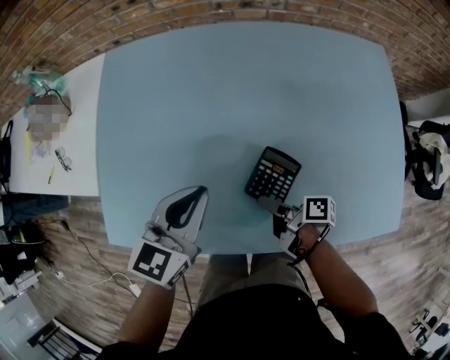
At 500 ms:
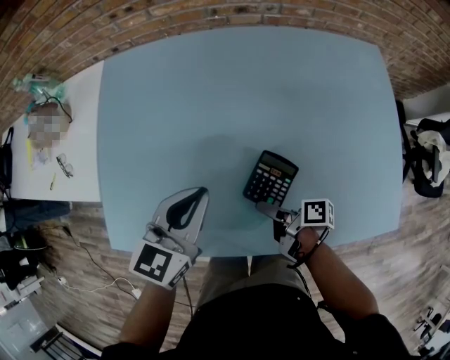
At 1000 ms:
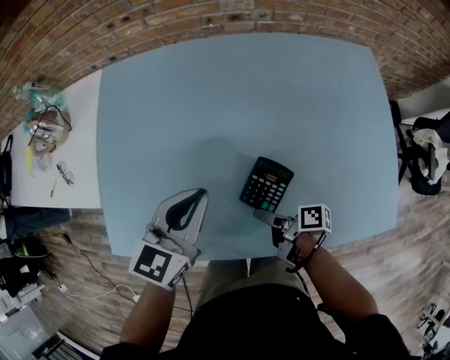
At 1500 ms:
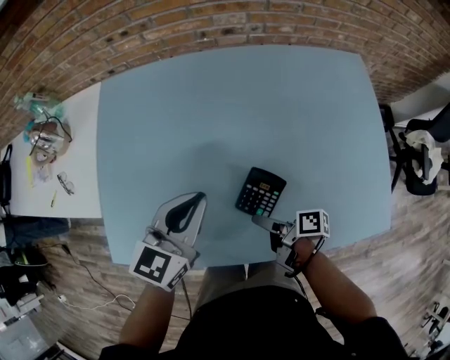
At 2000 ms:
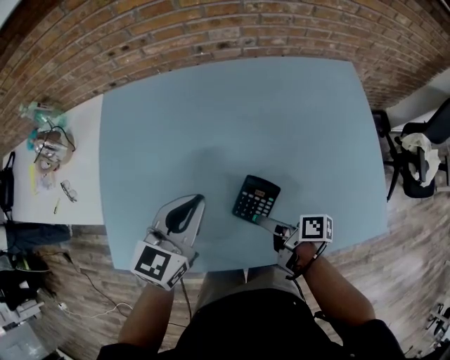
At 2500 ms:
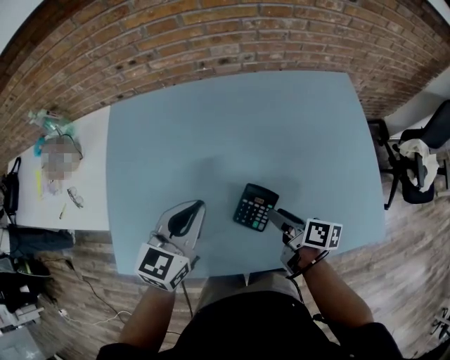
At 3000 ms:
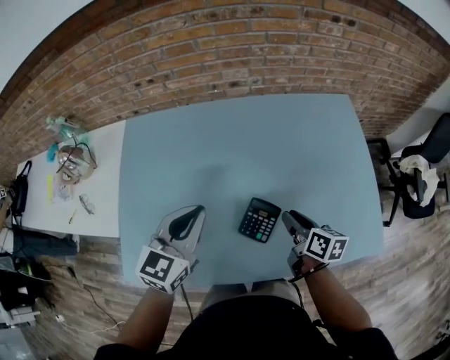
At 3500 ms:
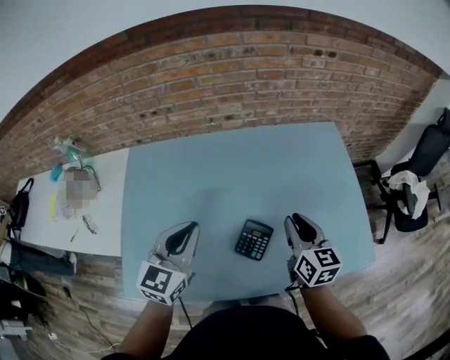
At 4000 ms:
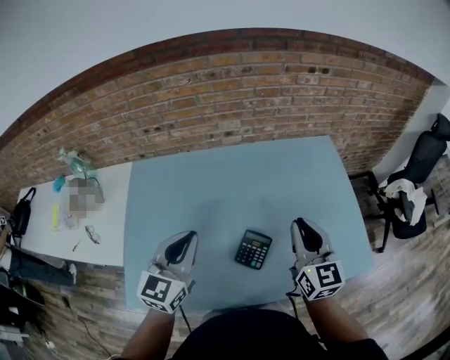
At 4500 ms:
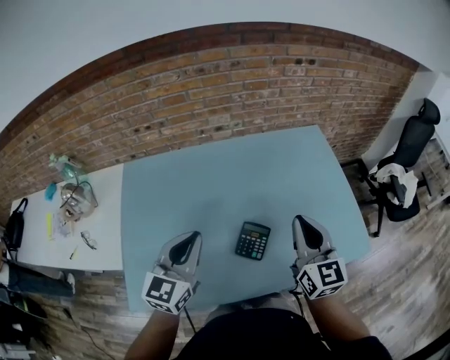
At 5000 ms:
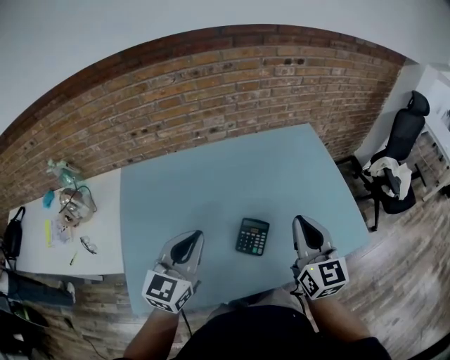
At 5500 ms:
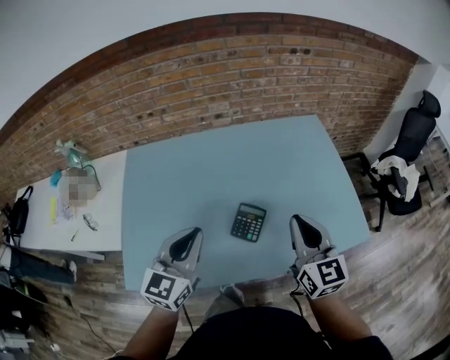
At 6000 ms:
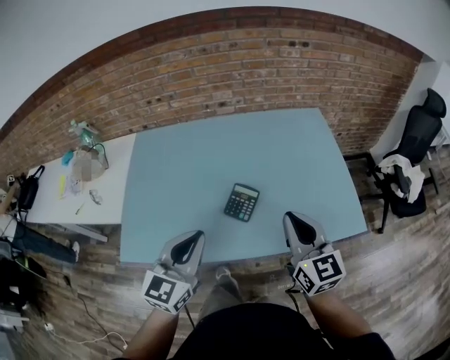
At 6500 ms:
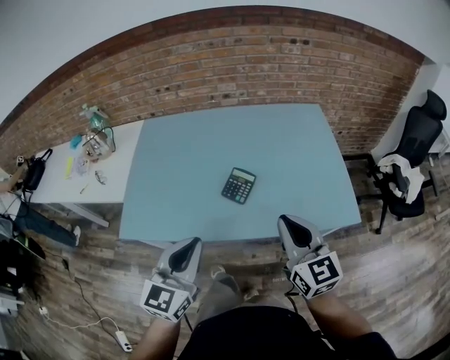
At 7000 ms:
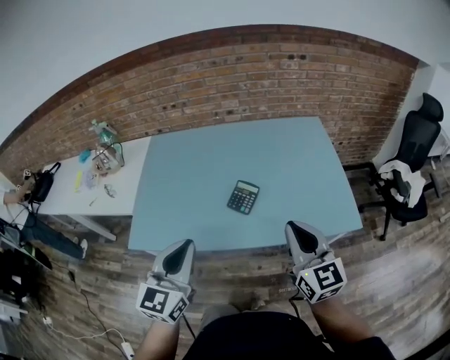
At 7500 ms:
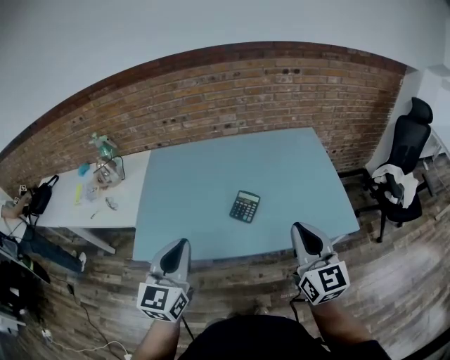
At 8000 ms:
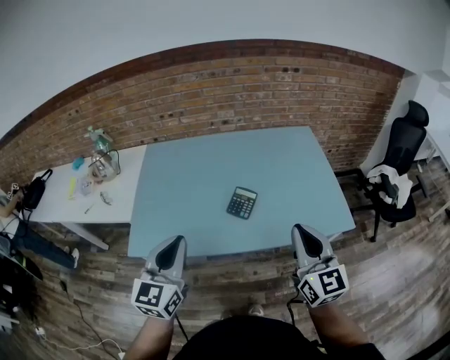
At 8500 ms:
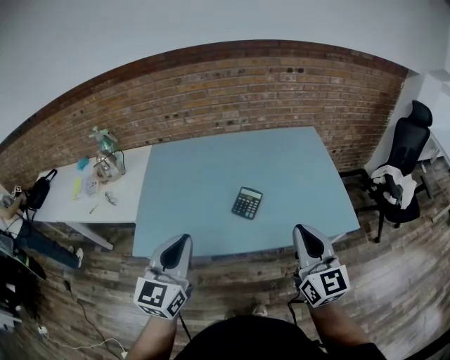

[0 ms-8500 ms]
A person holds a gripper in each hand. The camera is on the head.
0 ms to 2000 ms: The right gripper goes some 5 cm upward. The left gripper moves approximately 5 cm.
2000 ms to 4000 ms: The left gripper shifts roughly 10 cm upward. Meanwhile the right gripper moves upward, some 25 cm, rotates around the line of its fingers by approximately 70 degrees, counterclockwise from behind, and closes.
4000 ms to 6500 ms: The right gripper shifts some 25 cm backward, while the left gripper travels backward and to the right by approximately 30 cm.
6500 ms to 8500 ms: The left gripper is displaced to the left and upward by some 10 cm. The right gripper goes some 5 cm upward.

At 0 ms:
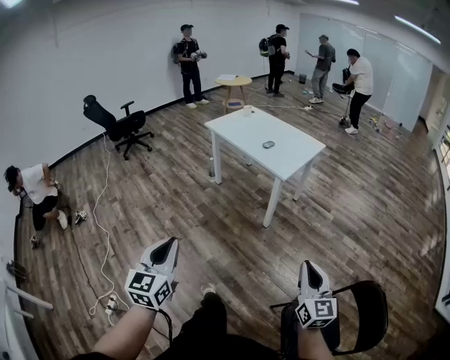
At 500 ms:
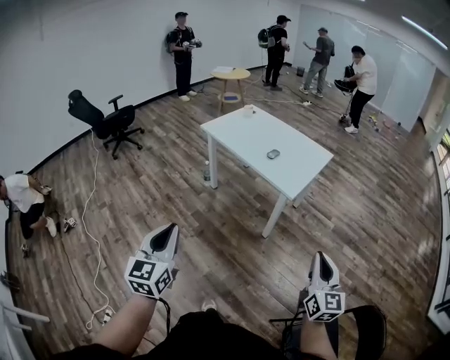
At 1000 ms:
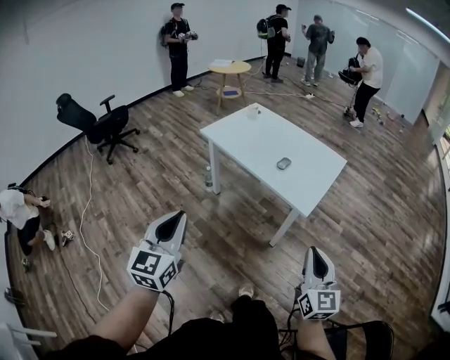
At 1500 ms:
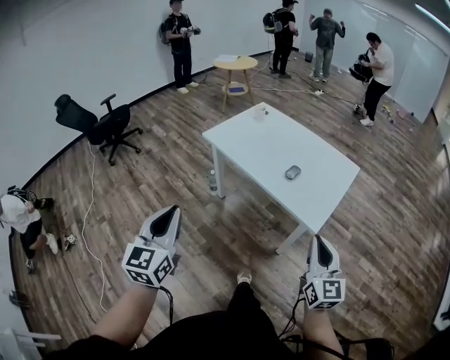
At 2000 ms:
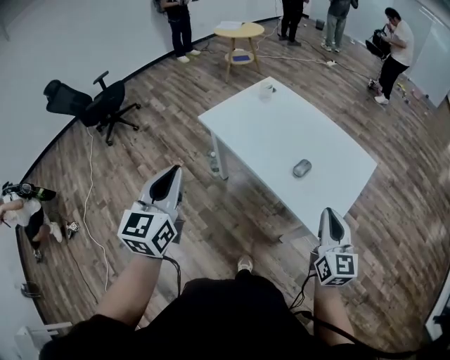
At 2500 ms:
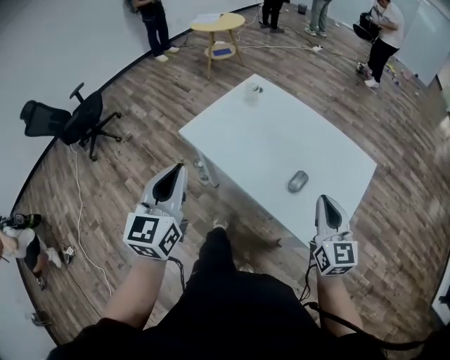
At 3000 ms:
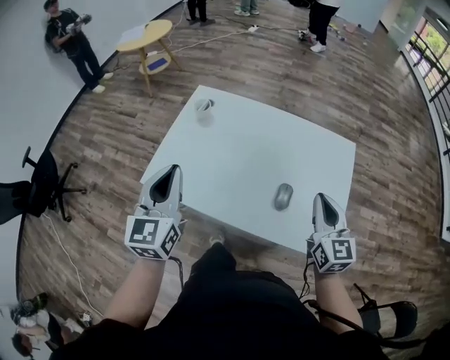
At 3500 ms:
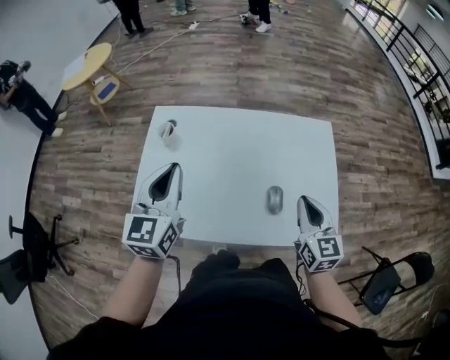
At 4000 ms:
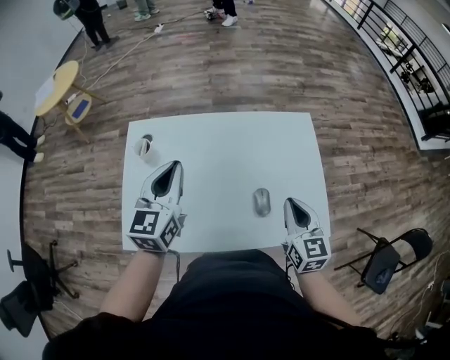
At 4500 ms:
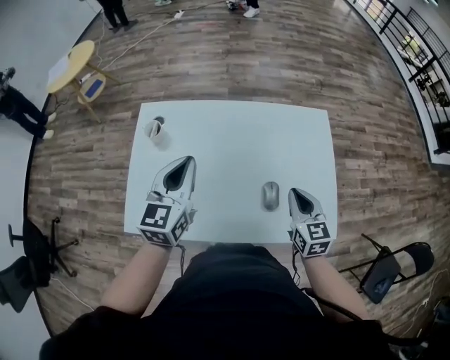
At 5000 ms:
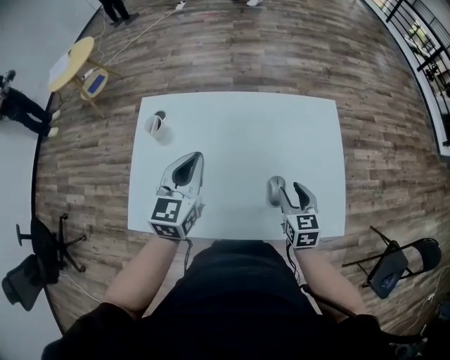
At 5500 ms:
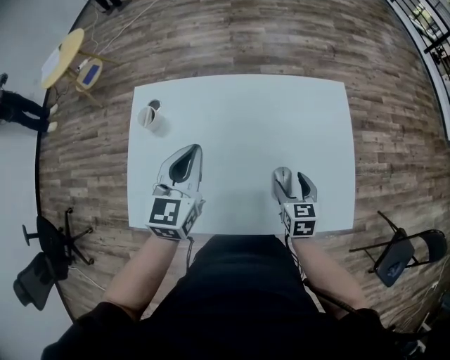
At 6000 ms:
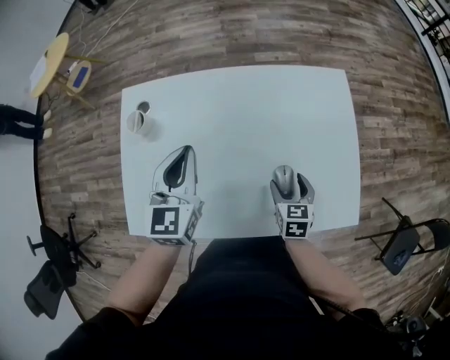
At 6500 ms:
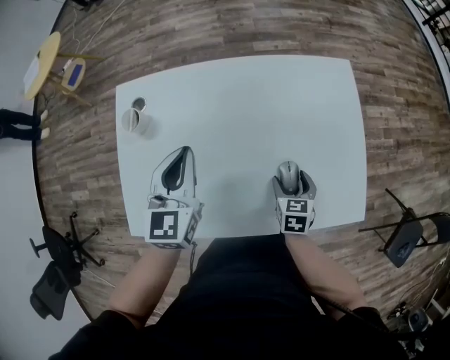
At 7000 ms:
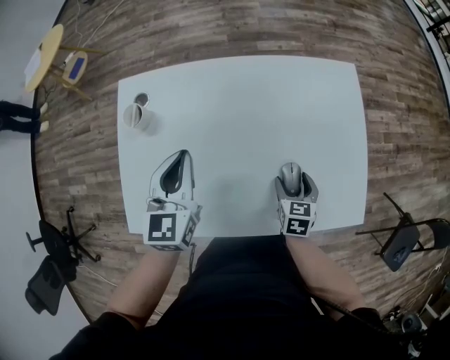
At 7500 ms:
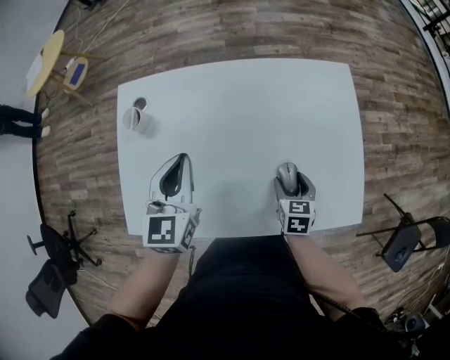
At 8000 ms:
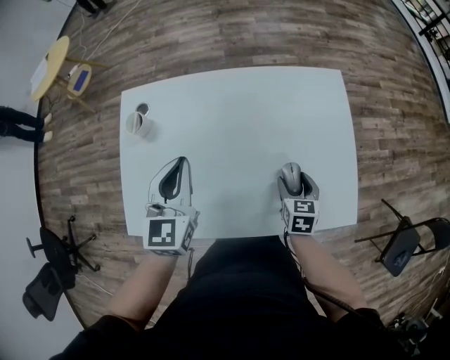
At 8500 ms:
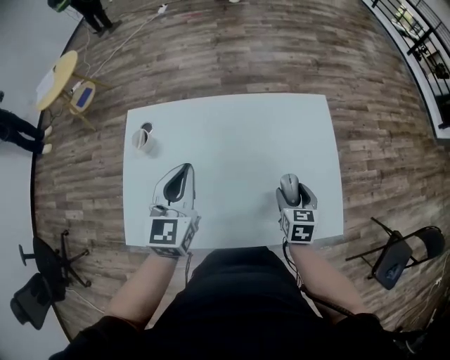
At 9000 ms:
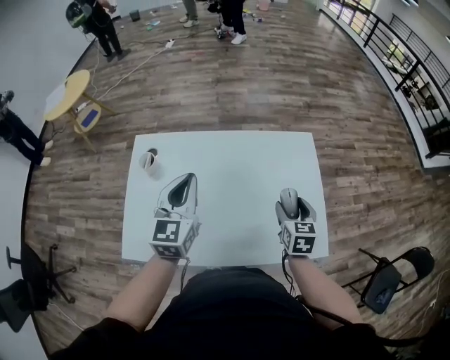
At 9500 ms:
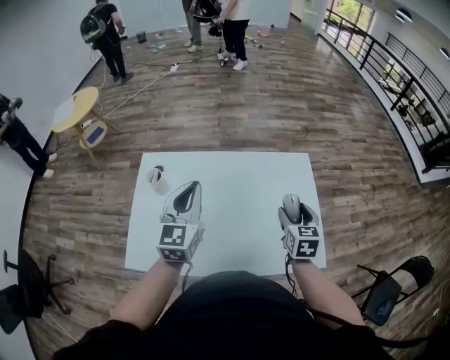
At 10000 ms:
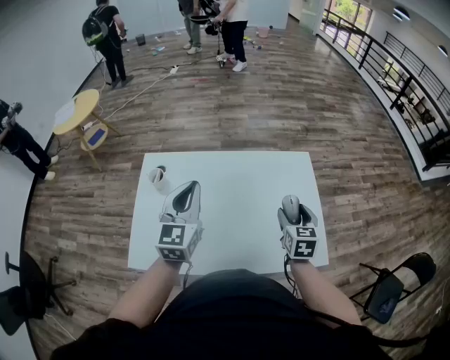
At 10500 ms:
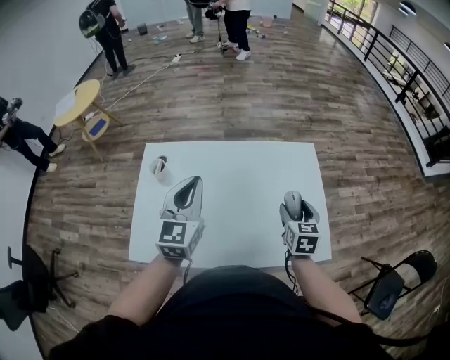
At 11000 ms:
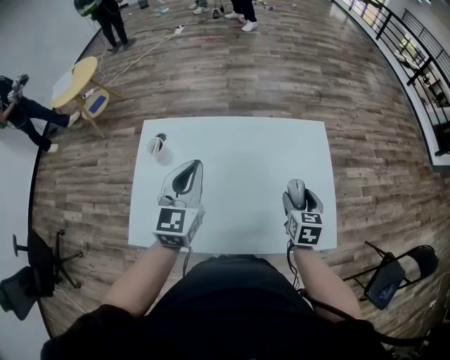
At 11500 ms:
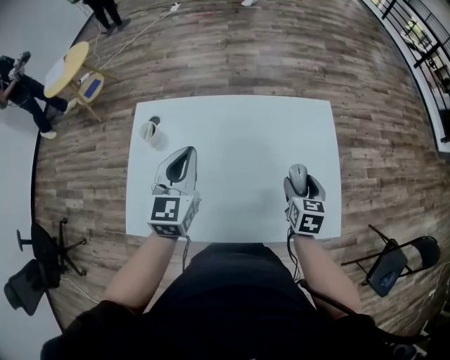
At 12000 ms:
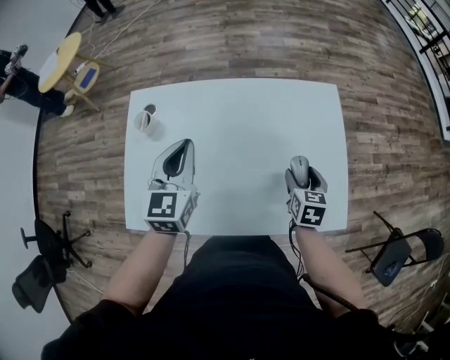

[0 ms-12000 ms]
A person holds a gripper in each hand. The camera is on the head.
0 ms to 2000 ms: The pair of grippers is taken forward, some 60 cm.
2000 ms to 4000 ms: The right gripper moves some 15 cm, and turns by about 40 degrees. The left gripper shifts by roughly 40 cm, and changes its angle by some 50 degrees.
4000 ms to 6000 ms: The left gripper heads downward, covering about 5 cm, while the right gripper travels downward by some 20 cm, changes its angle by about 30 degrees, and opens its fingers.
6000 ms to 8000 ms: The grippers move only a little.
8000 ms to 10000 ms: The left gripper goes roughly 10 cm upward; the right gripper travels upward by about 15 cm.
10000 ms to 12000 ms: Both grippers move downward, about 10 cm.

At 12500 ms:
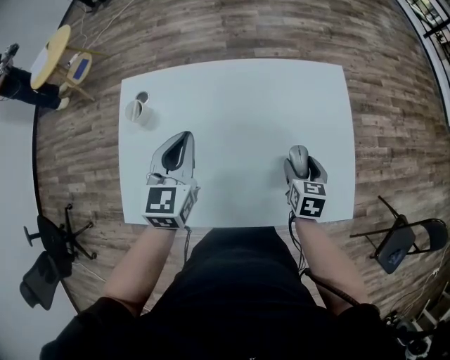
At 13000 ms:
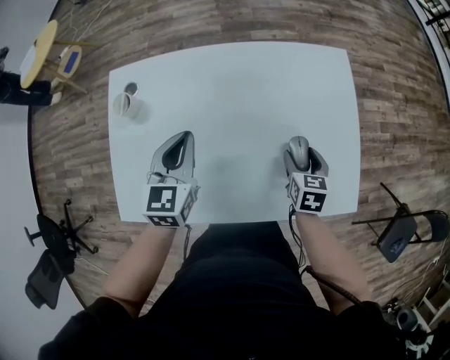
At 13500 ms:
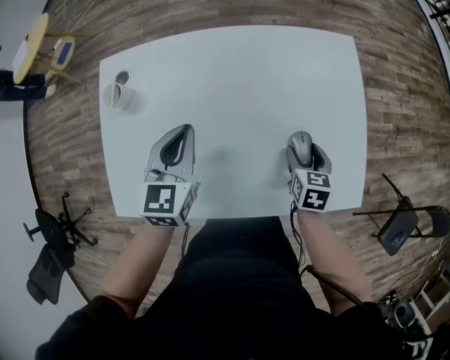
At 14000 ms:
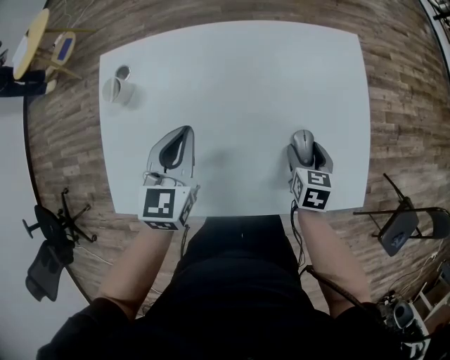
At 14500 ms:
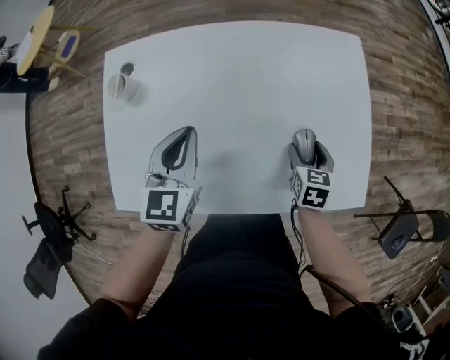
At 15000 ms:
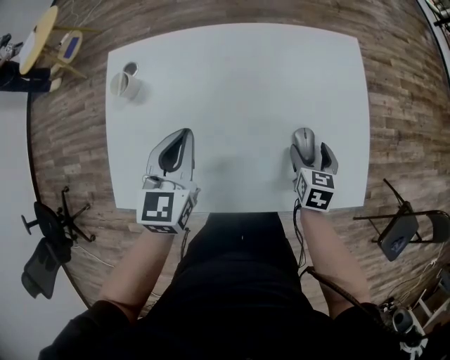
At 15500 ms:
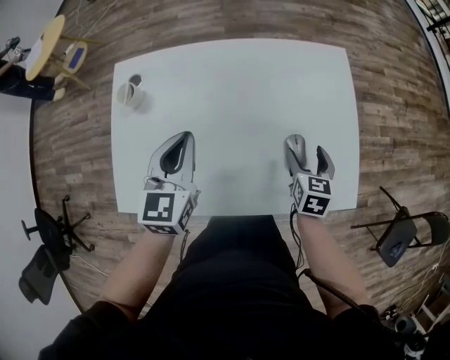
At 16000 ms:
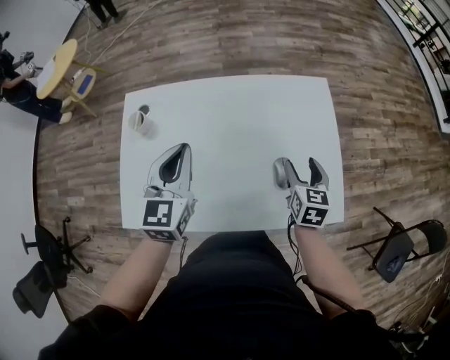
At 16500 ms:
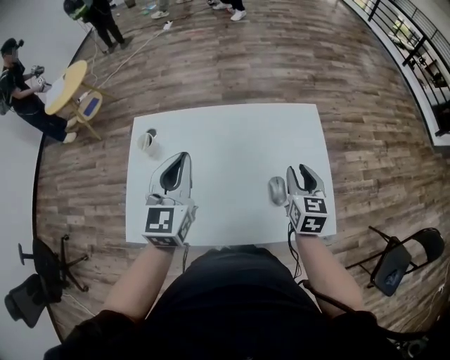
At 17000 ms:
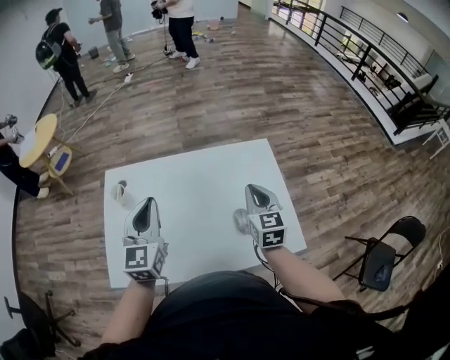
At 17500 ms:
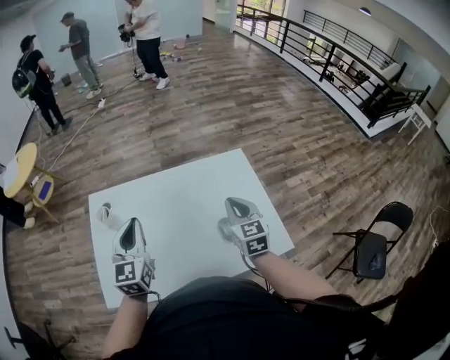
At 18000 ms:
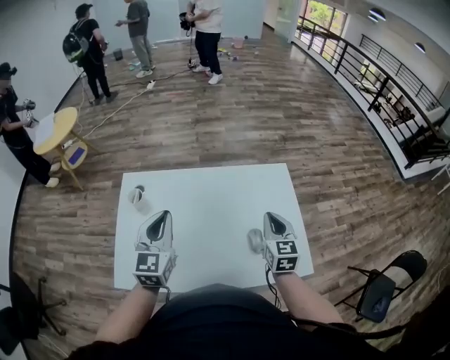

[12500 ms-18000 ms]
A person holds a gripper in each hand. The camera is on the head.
12500 ms to 14500 ms: The left gripper shifts by some 5 cm.
14500 ms to 16000 ms: Both grippers travel together upward, some 10 cm.
16000 ms to 18000 ms: The right gripper goes about 10 cm upward, and closes its fingers.

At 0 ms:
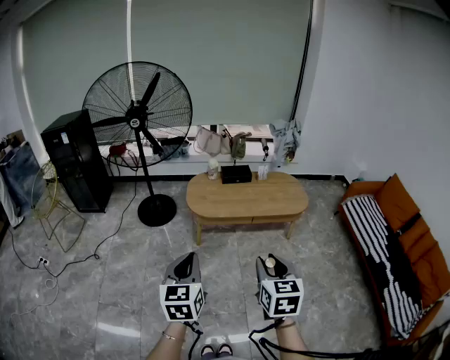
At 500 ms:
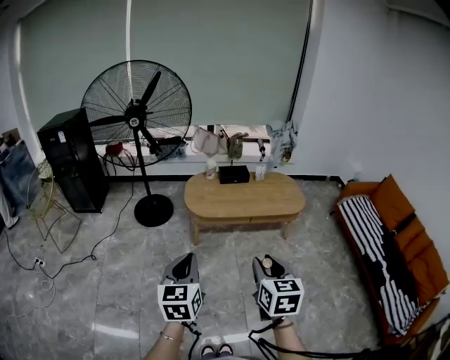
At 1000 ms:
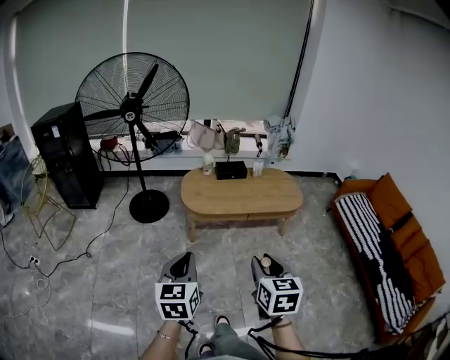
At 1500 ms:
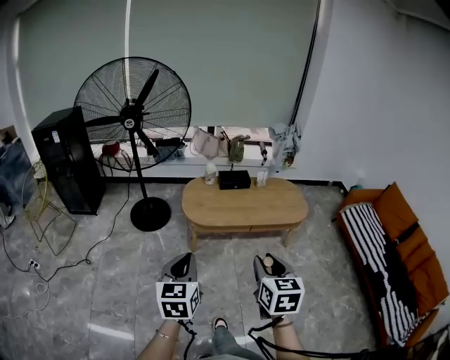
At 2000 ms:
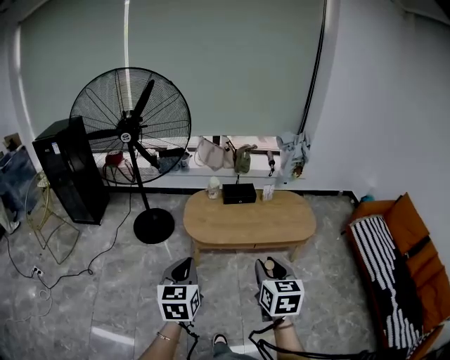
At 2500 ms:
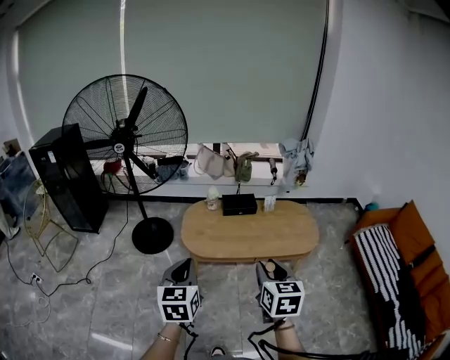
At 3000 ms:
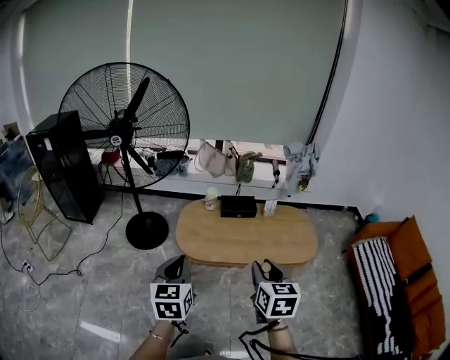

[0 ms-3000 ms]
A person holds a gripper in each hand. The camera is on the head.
0 ms to 1500 ms: The grippers both shift forward by roughly 10 cm.
1500 ms to 3000 ms: Both grippers move forward, about 25 cm.
